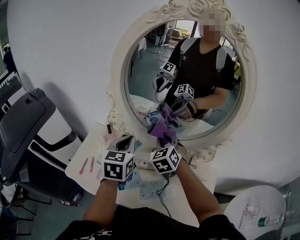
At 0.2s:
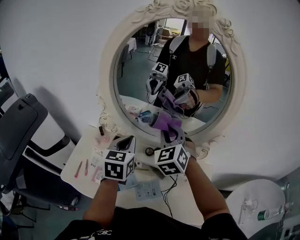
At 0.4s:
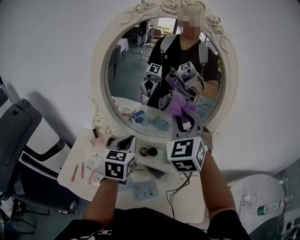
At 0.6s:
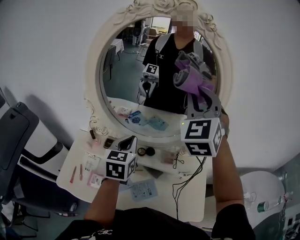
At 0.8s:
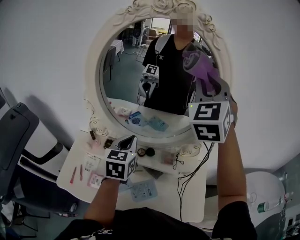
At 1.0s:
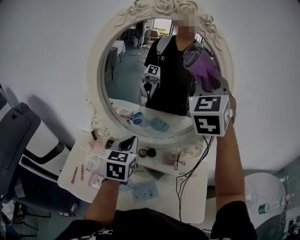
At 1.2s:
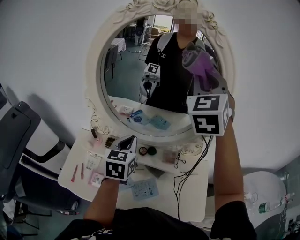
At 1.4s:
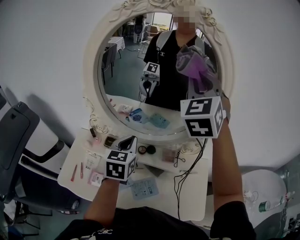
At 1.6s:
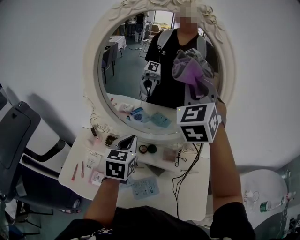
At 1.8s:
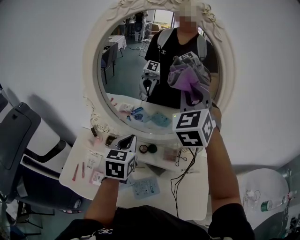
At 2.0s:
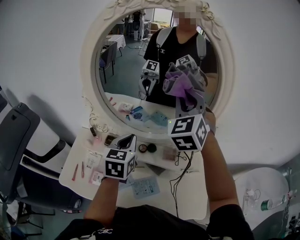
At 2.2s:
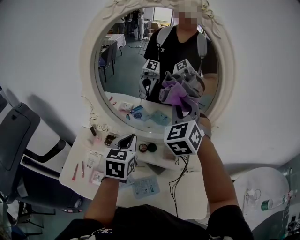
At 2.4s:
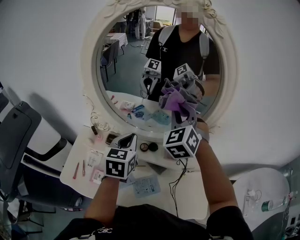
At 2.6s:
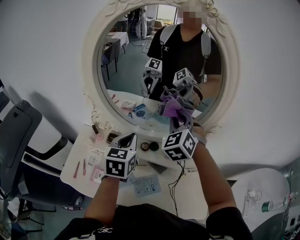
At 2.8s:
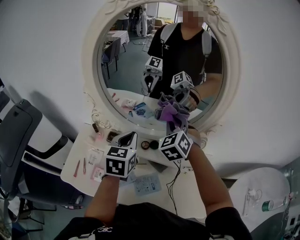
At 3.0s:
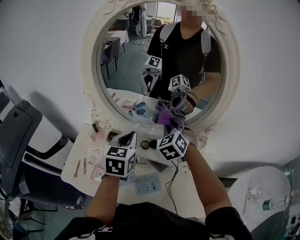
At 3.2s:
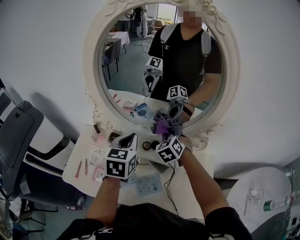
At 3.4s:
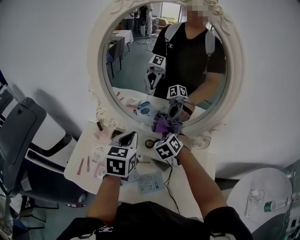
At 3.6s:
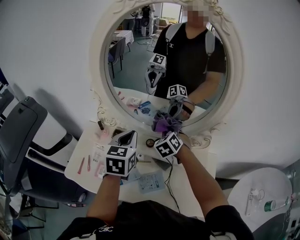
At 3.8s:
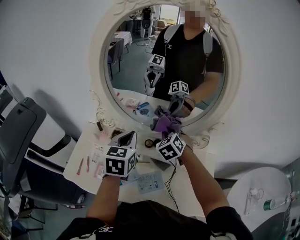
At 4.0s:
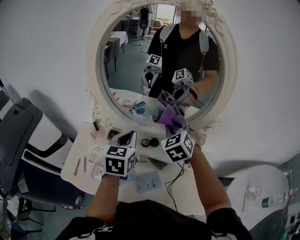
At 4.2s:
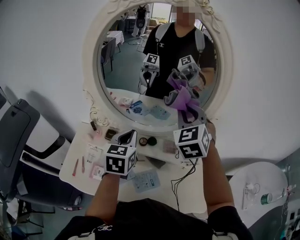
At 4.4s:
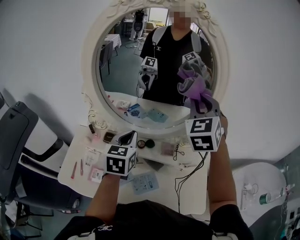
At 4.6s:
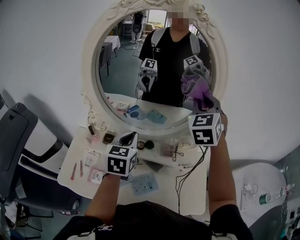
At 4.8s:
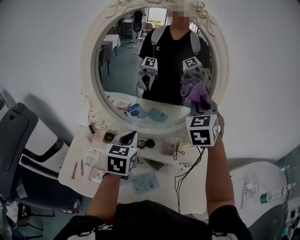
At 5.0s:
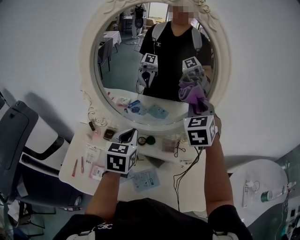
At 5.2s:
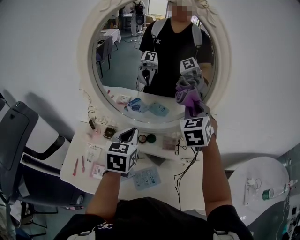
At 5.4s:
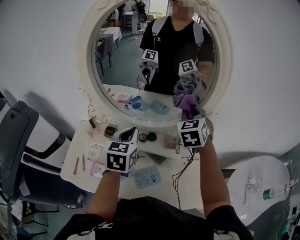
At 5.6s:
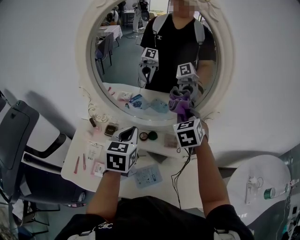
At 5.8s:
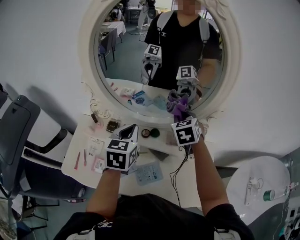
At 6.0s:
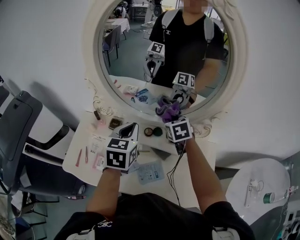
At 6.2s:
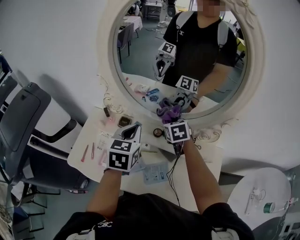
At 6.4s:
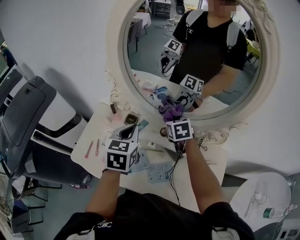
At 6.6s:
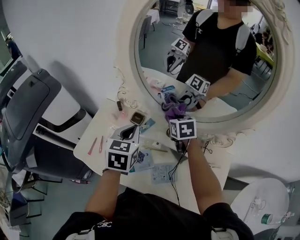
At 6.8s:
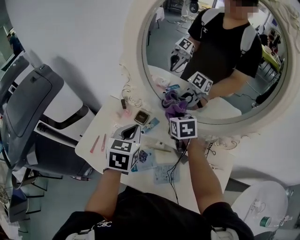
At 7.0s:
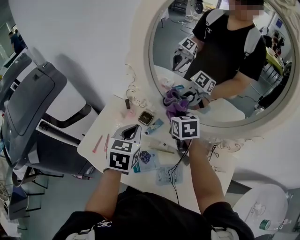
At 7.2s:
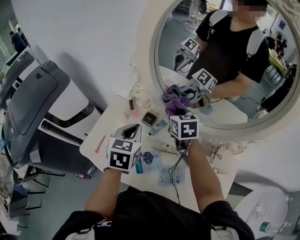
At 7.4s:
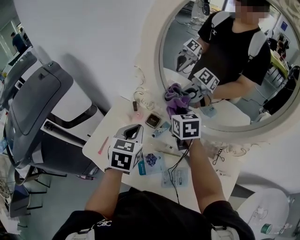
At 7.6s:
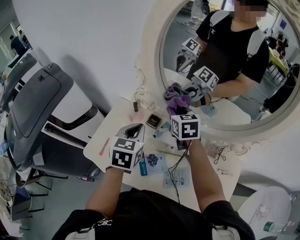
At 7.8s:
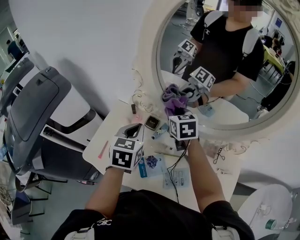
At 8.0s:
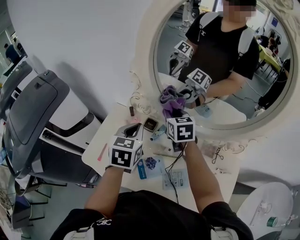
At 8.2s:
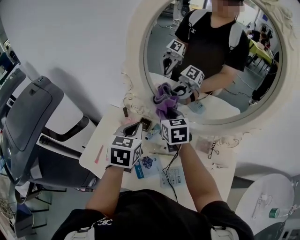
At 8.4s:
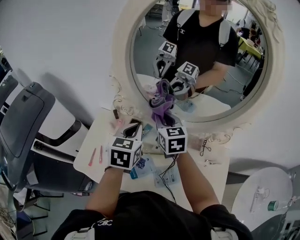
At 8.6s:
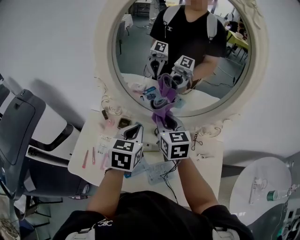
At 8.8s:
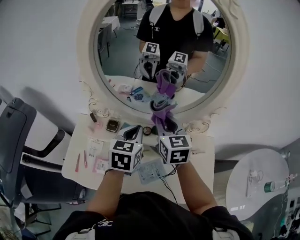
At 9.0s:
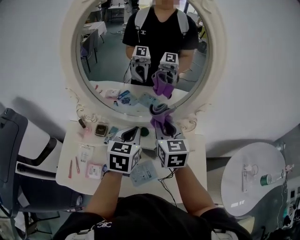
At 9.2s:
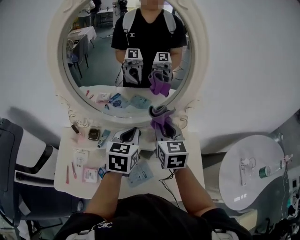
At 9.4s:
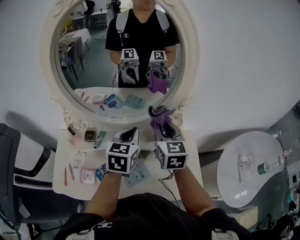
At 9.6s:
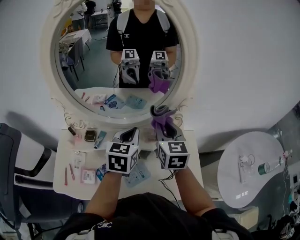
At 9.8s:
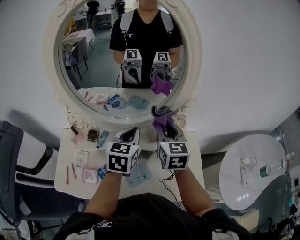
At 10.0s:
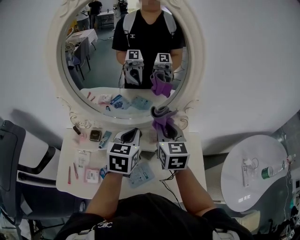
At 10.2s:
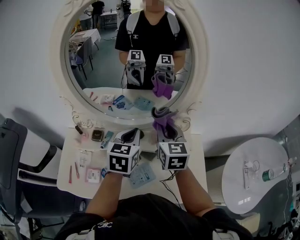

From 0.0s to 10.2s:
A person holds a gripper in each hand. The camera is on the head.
From 0.0s to 1.4s: The left gripper moves to the right, about 10 cm. Meanwhile the right gripper moves upward and to the right, some 35 cm, and changes its angle by approximately 30 degrees.
From 1.4s to 3.0s: The right gripper is displaced downward by about 30 cm, and points its fingers roughly 30 degrees further downward.
From 3.0s to 4.4s: The right gripper heads upward and to the right, covering some 20 cm, and changes its angle by some 20 degrees.
From 4.4s to 5.8s: The right gripper is displaced downward by roughly 20 cm, and rotates some 30 degrees.
From 5.8s to 7.2s: Both grippers travel together to the left, some 20 cm. The right gripper turns by some 30 degrees.
From 7.2s to 8.8s: The left gripper travels to the right by approximately 15 cm, and turns by approximately 20 degrees. Meanwhile the right gripper goes some 20 cm to the right, backward and upward, and swivels approximately 30 degrees.
From 8.8s to 10.2s: The grippers both shift to the right by some 10 cm.

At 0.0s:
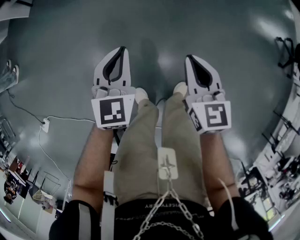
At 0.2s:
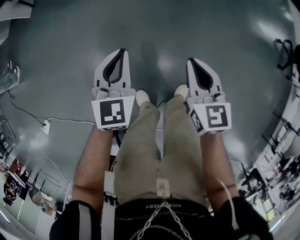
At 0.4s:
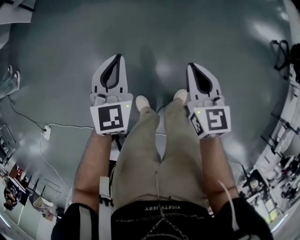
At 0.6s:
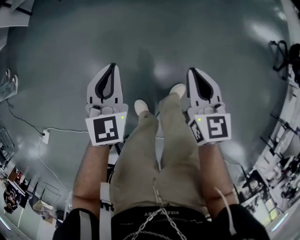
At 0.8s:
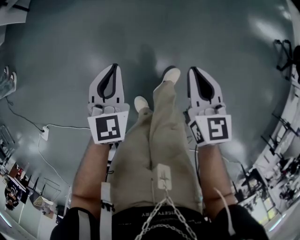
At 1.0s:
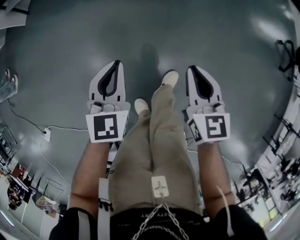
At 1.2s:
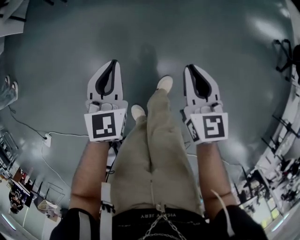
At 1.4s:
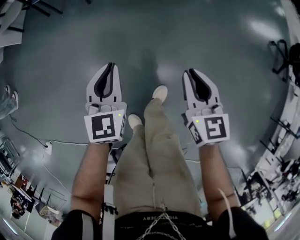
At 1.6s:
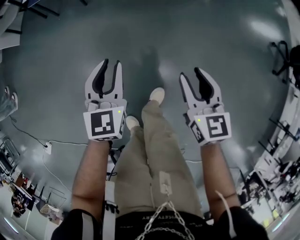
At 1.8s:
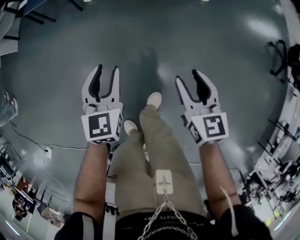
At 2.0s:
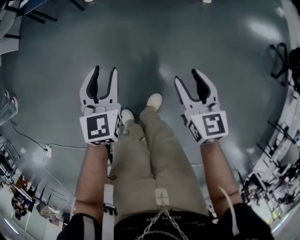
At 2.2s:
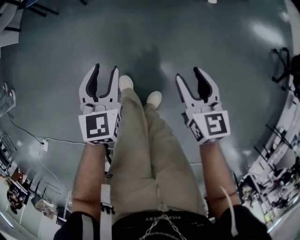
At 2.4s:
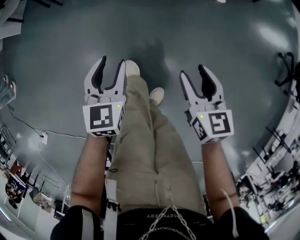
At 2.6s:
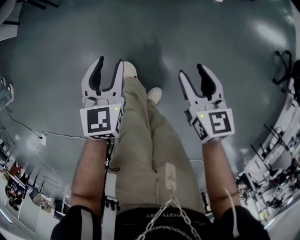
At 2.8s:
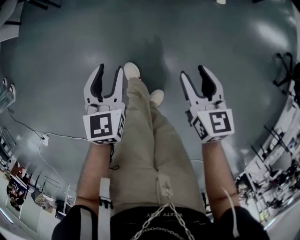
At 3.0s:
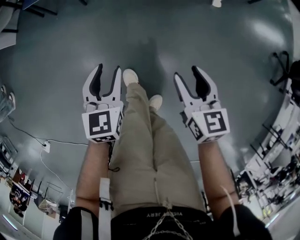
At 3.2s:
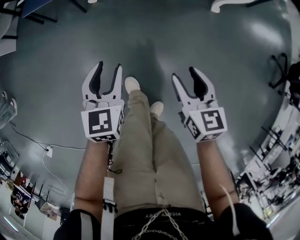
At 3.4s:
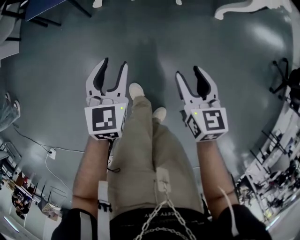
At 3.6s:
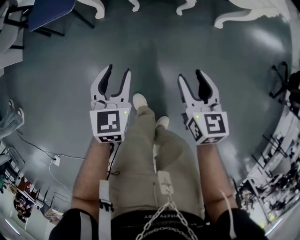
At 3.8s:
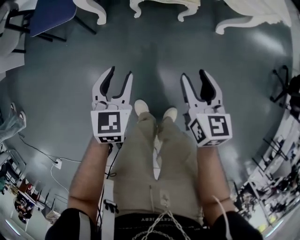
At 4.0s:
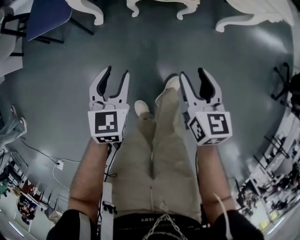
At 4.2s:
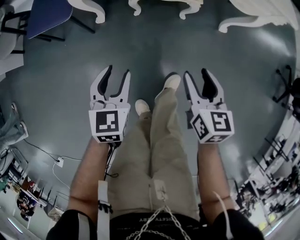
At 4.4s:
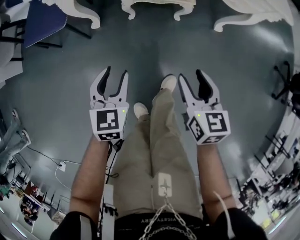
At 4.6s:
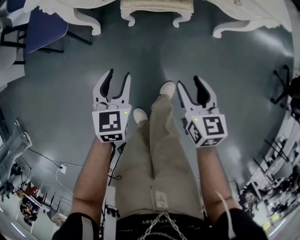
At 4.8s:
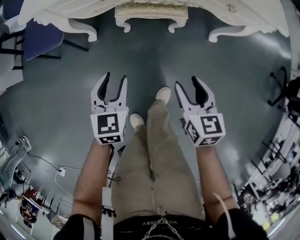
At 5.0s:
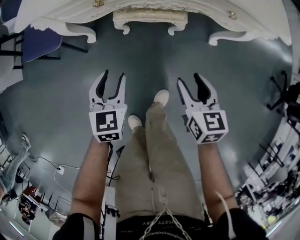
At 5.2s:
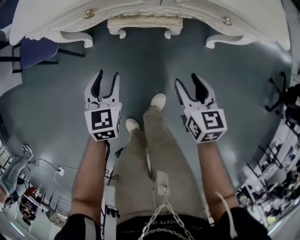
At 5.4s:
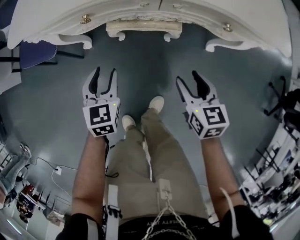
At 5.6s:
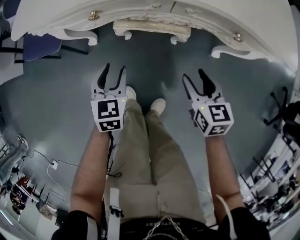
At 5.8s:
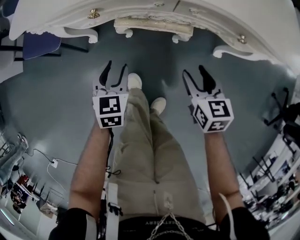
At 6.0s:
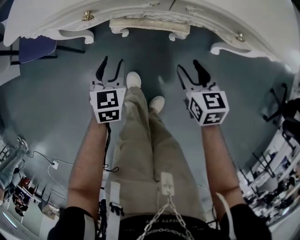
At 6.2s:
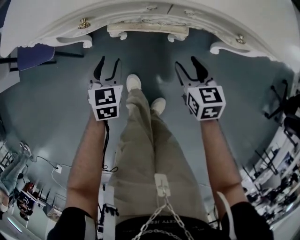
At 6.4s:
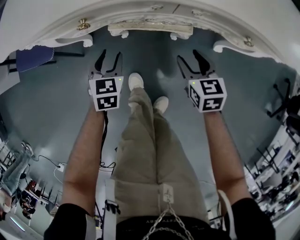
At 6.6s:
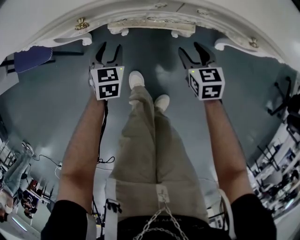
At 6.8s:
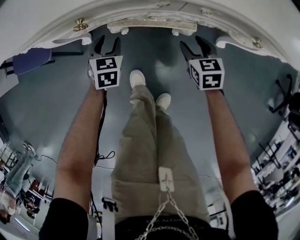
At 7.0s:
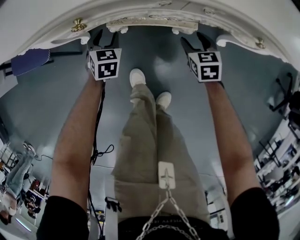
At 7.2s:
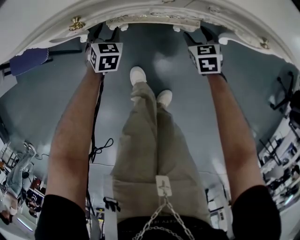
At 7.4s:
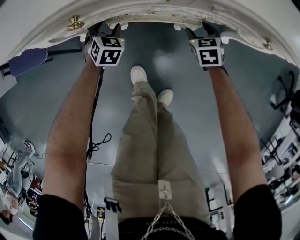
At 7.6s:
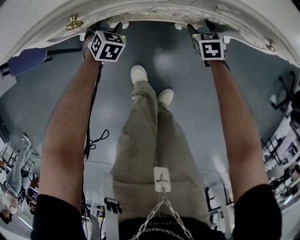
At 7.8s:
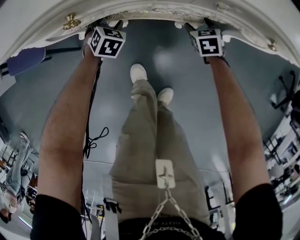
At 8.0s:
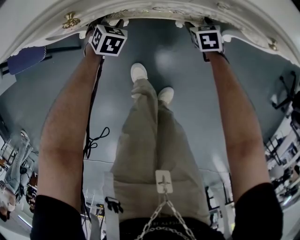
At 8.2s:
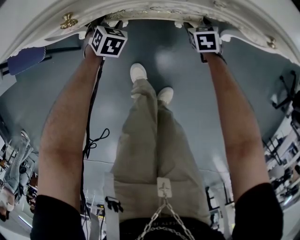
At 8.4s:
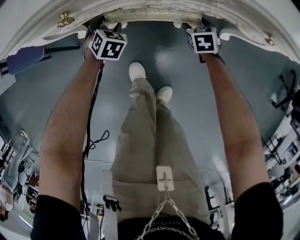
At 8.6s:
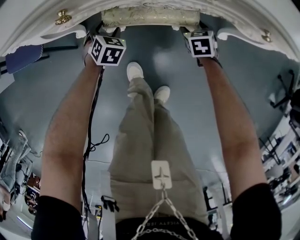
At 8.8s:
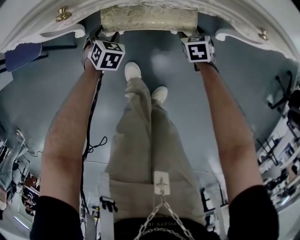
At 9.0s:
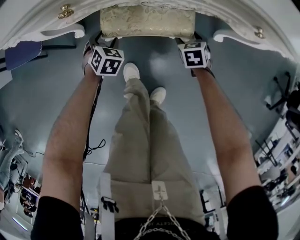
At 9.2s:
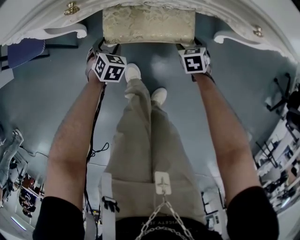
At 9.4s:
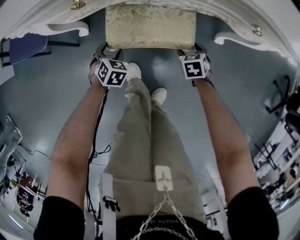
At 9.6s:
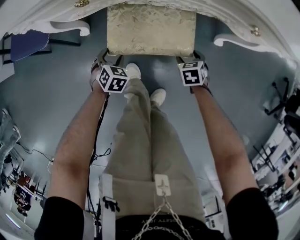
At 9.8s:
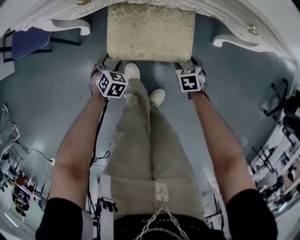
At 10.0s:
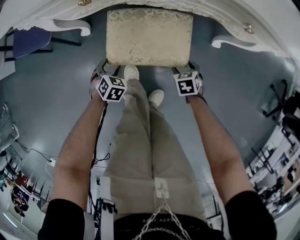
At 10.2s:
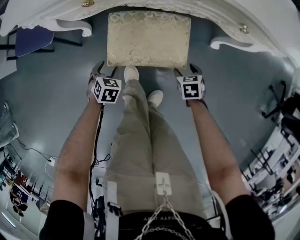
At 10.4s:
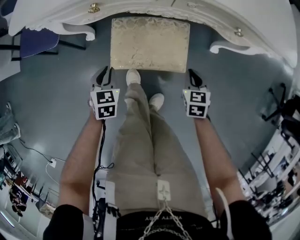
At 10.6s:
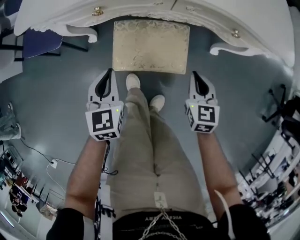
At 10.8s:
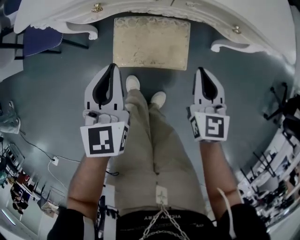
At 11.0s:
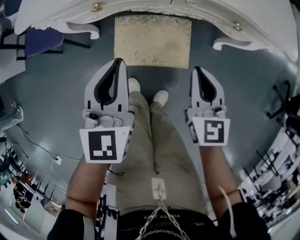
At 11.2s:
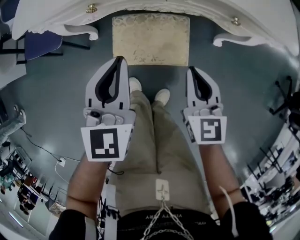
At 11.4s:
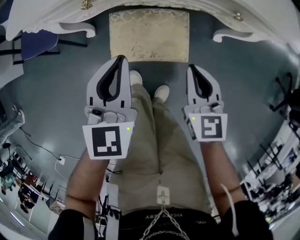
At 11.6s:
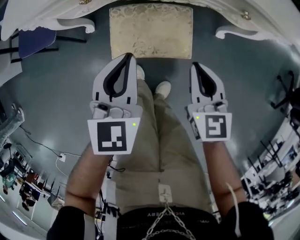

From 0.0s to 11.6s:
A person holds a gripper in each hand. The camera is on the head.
From 0.0s to 1.4s: The left gripper shifts roughly 10 cm forward, while the right gripper moves forward and to the right, about 10 cm.
From 1.4s to 2.8s: The right gripper travels forward by approximately 10 cm, and opens its fingers; the left gripper shifts approximately 5 cm forward, and opens its fingers.
From 2.8s to 4.4s: Both grippers move forward, about 20 cm.
From 4.4s to 5.8s: Both grippers travel together forward and to the right, some 15 cm.
From 5.8s to 7.2s: The right gripper moves downward and forward, some 20 cm, and rotates approximately 20 degrees, while the left gripper moves forward and downward, some 25 cm.
From 7.2s to 8.8s: The right gripper travels downward by about 5 cm. Meanwhile the left gripper moves about 5 cm.
From 8.8s to 10.2s: The left gripper shifts by roughly 15 cm. Meanwhile the right gripper ends up some 15 cm from where it was.
From 10.2s to 11.6s: The two grippers go about 30 cm upward. The left gripper tilts its fingers roughly 40 degrees upward, and closes its fingers. Meanwhile the right gripper angles its fingers upward, by approximately 40 degrees, and closes.

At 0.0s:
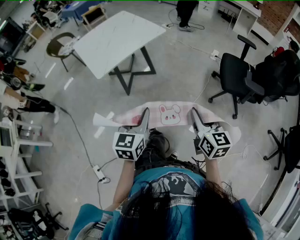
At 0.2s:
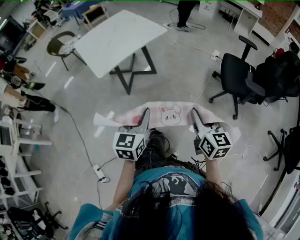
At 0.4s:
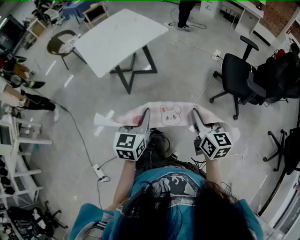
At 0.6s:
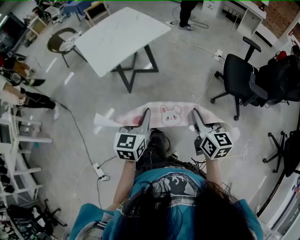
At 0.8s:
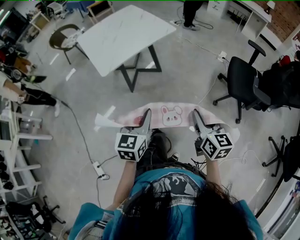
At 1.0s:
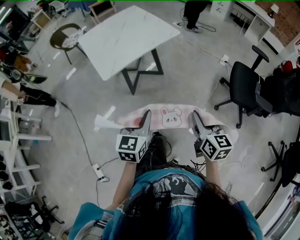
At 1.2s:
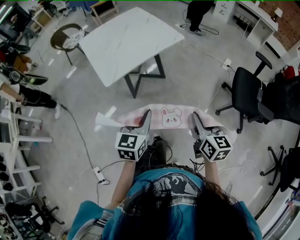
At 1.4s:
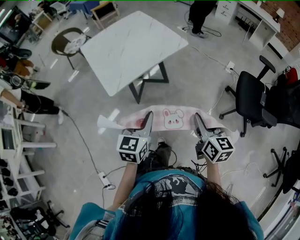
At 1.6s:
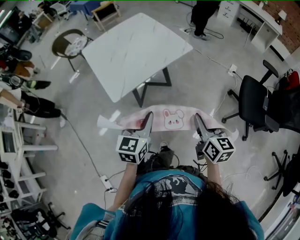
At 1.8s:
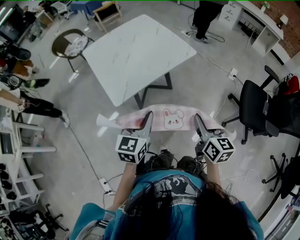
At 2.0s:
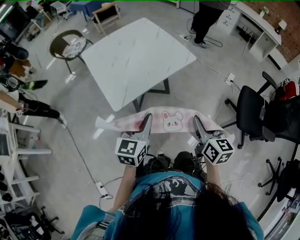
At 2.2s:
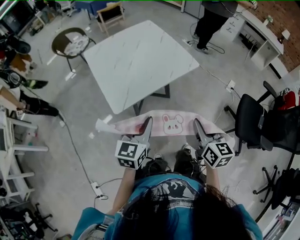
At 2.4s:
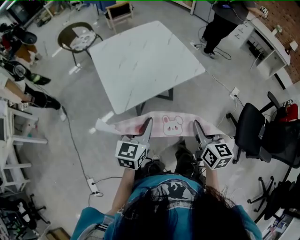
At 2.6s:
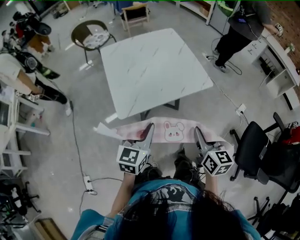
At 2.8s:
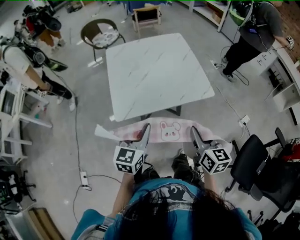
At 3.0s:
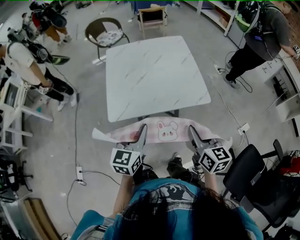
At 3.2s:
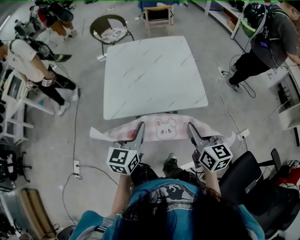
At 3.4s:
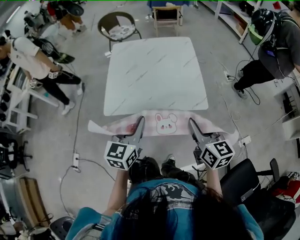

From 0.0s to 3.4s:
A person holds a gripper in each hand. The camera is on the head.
From 0.0s to 1.6s: The two grippers go approximately 25 cm forward and to the left.
From 1.6s to 3.4s: The right gripper ends up approximately 35 cm from where it was, and turns by about 40 degrees. The left gripper moves about 25 cm, and changes its angle by approximately 30 degrees.
